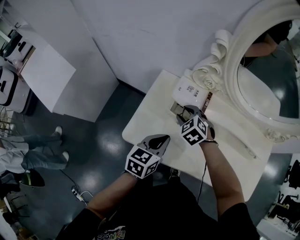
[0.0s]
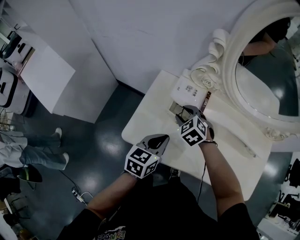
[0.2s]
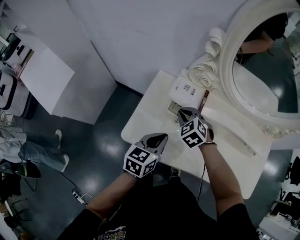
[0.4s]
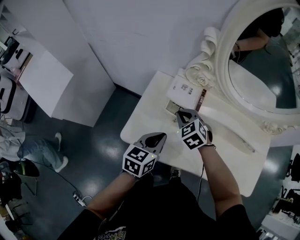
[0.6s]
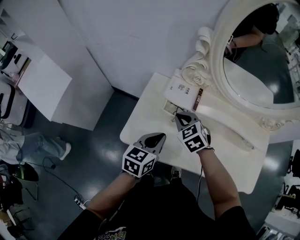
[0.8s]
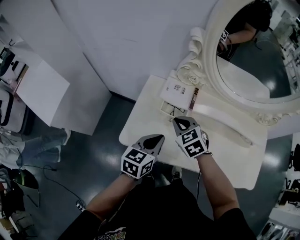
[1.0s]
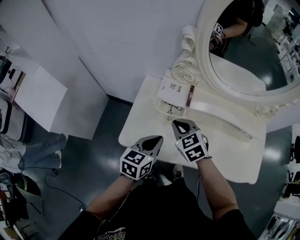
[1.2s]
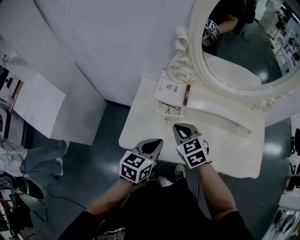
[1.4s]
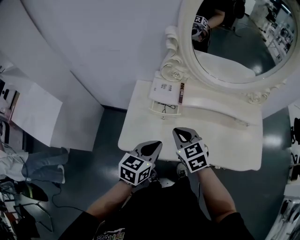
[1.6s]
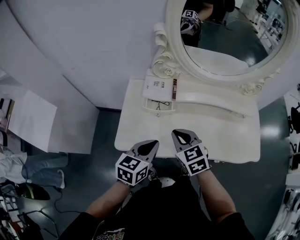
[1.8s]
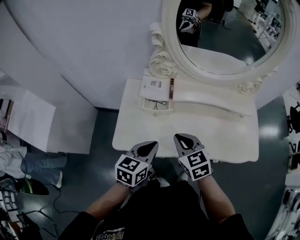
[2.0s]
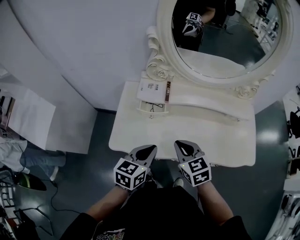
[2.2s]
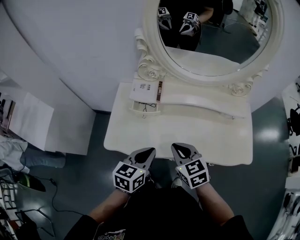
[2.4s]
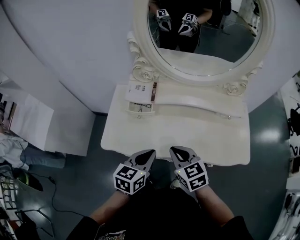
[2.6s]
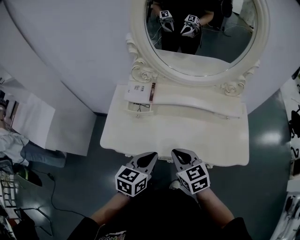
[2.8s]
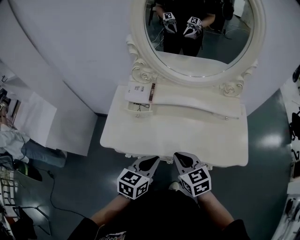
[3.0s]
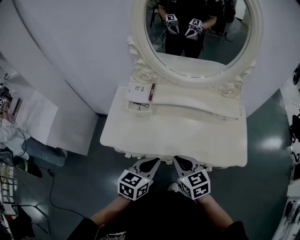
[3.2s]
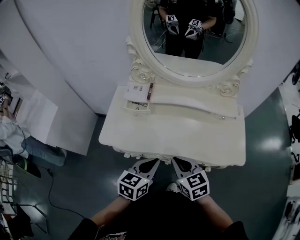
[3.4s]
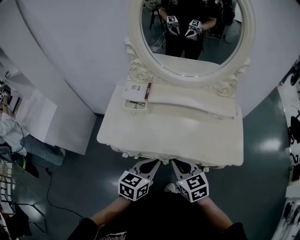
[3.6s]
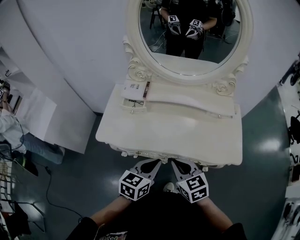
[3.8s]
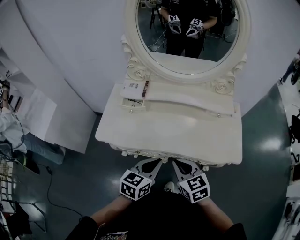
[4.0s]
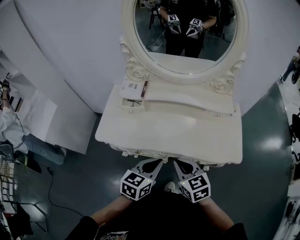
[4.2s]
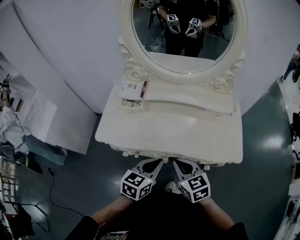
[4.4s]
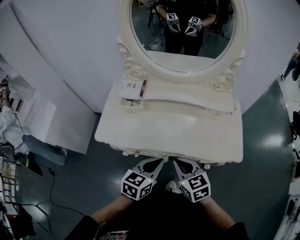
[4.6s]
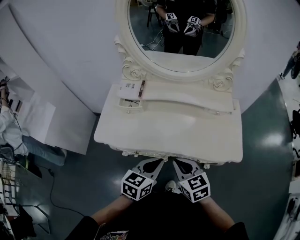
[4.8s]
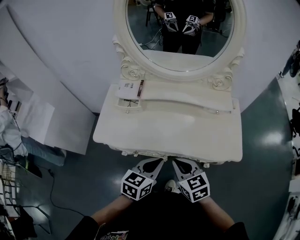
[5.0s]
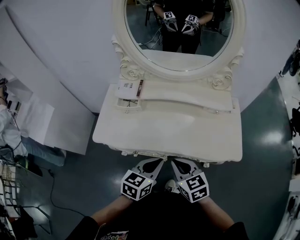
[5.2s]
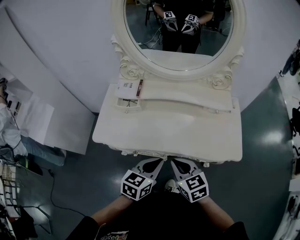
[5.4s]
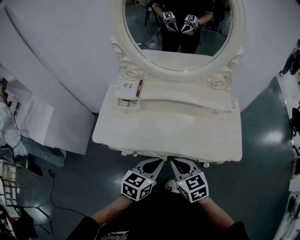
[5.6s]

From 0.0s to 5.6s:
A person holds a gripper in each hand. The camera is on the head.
From 0.0s to 1.4s: The left gripper ends up some 5 cm from where it was. Meanwhile the right gripper moves backward and upward, some 15 cm, swivels some 30 degrees, and closes its fingers.
From 1.4s to 2.8s: The two grippers go roughly 20 cm to the right and backward.
From 2.8s to 4.2s: The right gripper travels backward and to the right by about 10 cm. The left gripper is displaced to the right and backward by about 10 cm.
From 4.2s to 5.6s: The grippers move only a little.

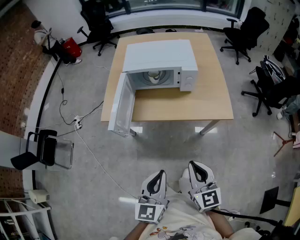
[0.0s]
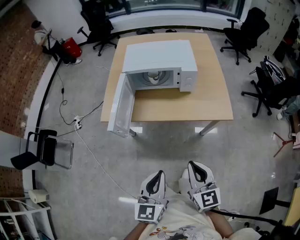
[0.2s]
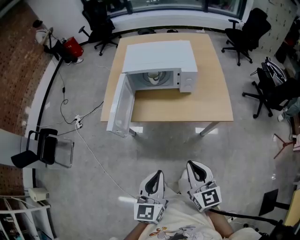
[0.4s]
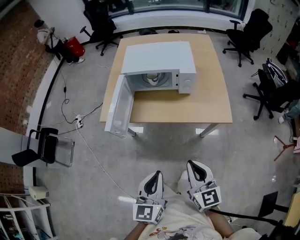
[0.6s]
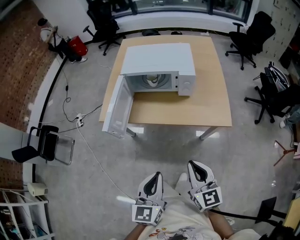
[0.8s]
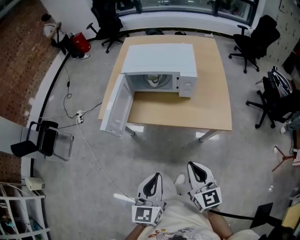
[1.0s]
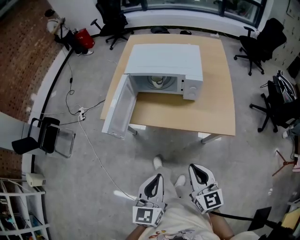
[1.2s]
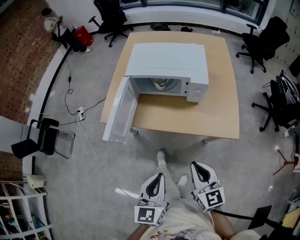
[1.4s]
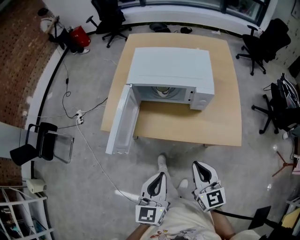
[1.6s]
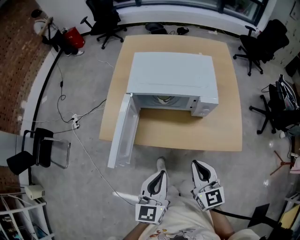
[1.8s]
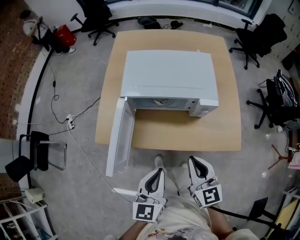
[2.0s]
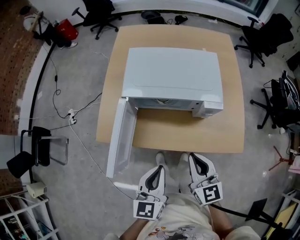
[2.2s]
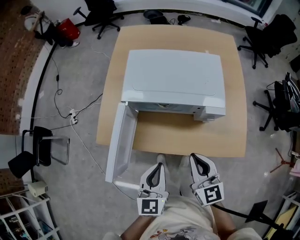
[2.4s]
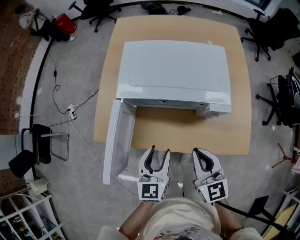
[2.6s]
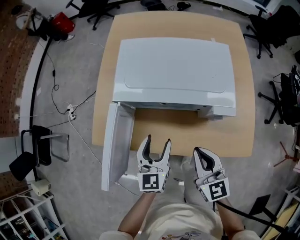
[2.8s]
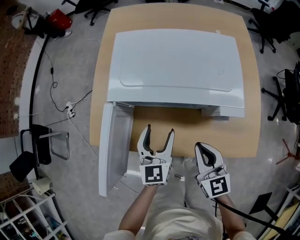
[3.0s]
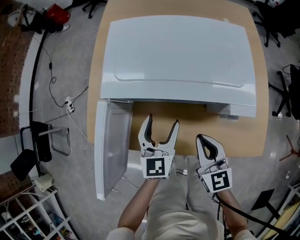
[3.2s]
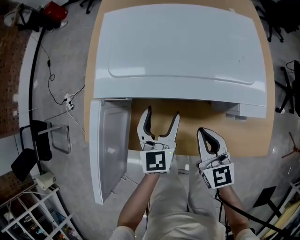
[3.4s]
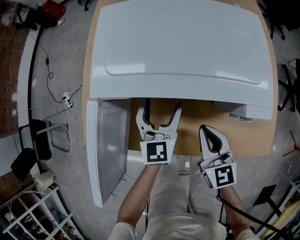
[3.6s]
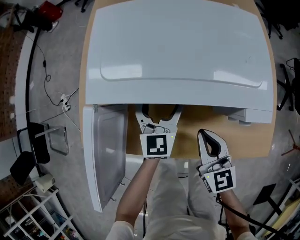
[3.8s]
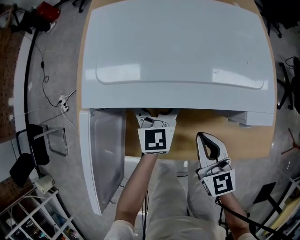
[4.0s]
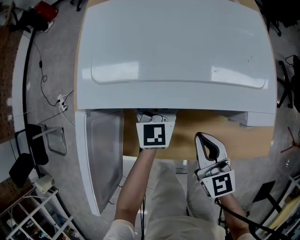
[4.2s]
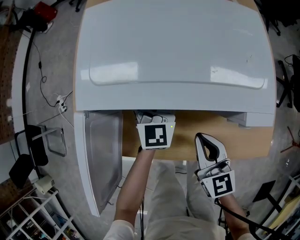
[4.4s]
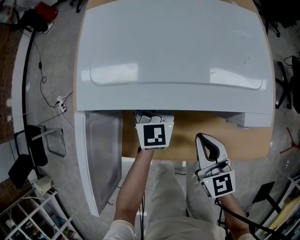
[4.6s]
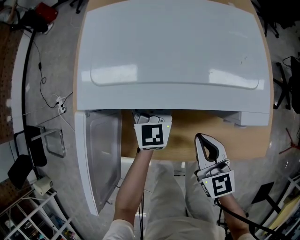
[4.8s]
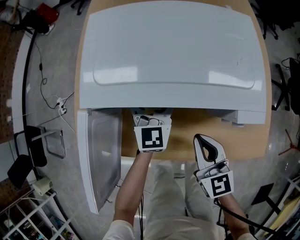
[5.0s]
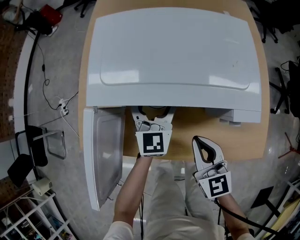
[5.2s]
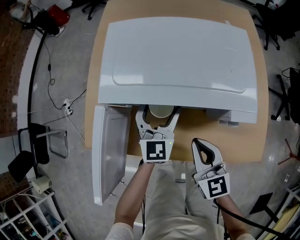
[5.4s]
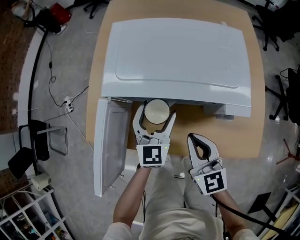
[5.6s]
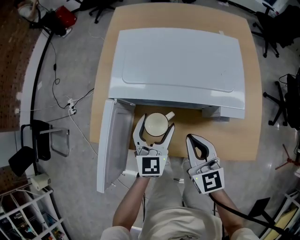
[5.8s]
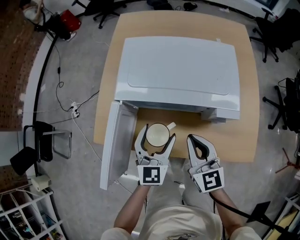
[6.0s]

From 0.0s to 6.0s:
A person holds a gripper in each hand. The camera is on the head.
From 0.0s to 1.6s: Both grippers travel together forward, approximately 15 cm.
From 1.6s to 3.0s: The two grippers go approximately 30 cm forward and downward. The left gripper opens up.
From 3.0s to 4.4s: The left gripper is displaced forward and downward by some 15 cm, and rotates approximately 20 degrees, while the right gripper is displaced downward by roughly 10 cm.
From 4.4s to 6.0s: The left gripper is displaced backward and upward by about 20 cm. Meanwhile the right gripper heads upward, covering roughly 10 cm.

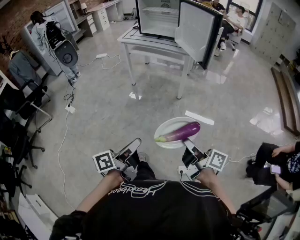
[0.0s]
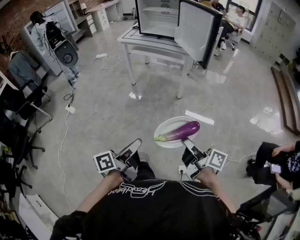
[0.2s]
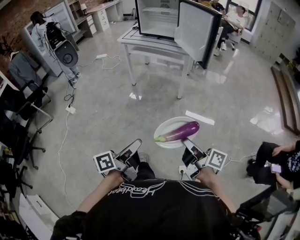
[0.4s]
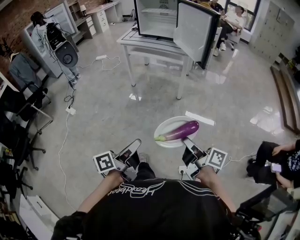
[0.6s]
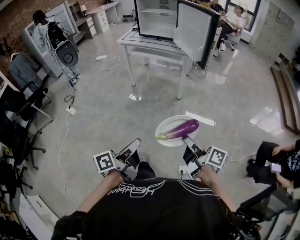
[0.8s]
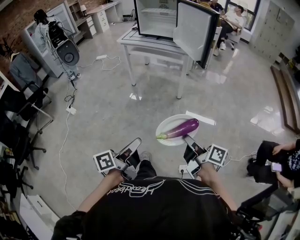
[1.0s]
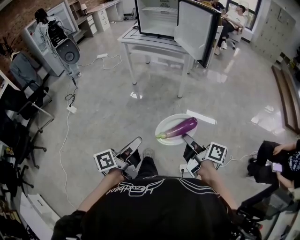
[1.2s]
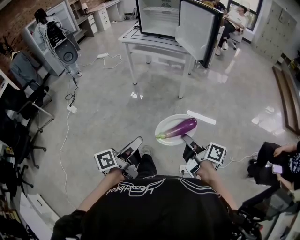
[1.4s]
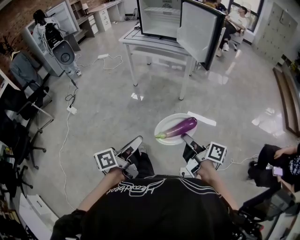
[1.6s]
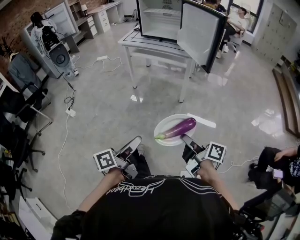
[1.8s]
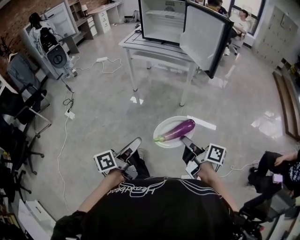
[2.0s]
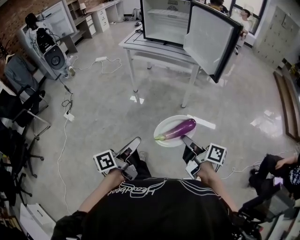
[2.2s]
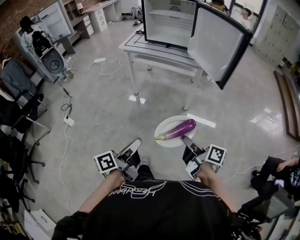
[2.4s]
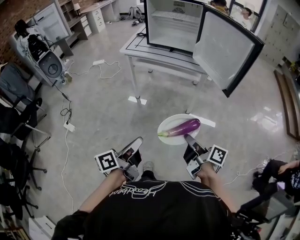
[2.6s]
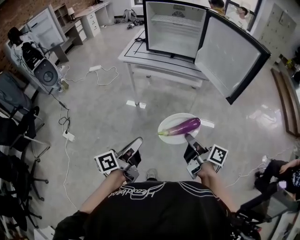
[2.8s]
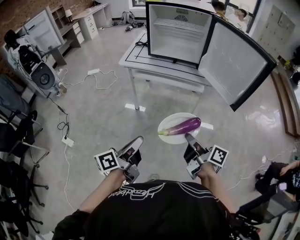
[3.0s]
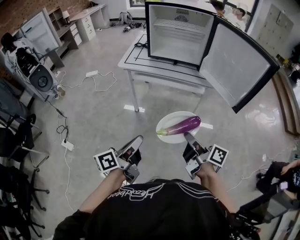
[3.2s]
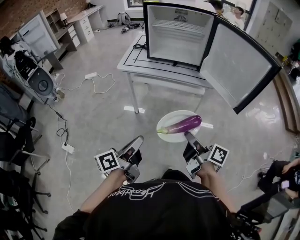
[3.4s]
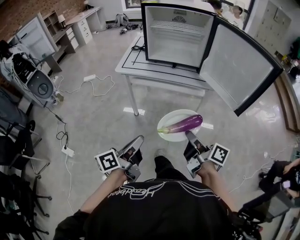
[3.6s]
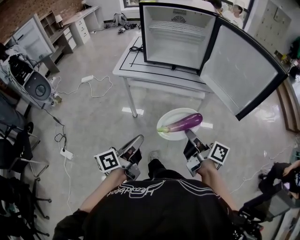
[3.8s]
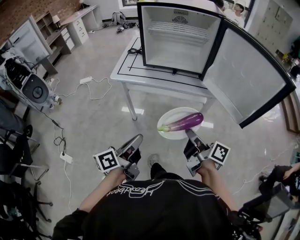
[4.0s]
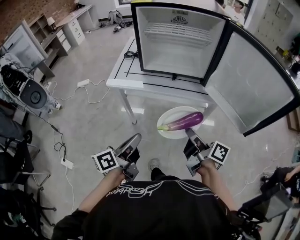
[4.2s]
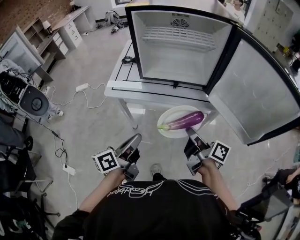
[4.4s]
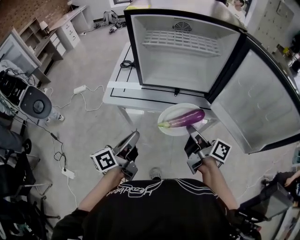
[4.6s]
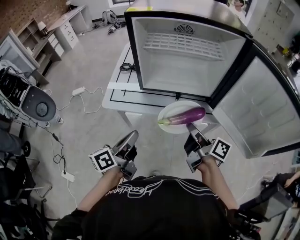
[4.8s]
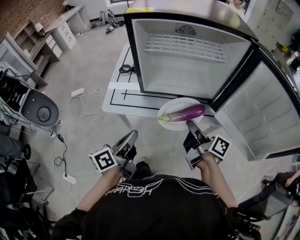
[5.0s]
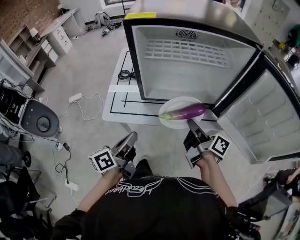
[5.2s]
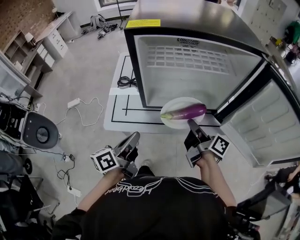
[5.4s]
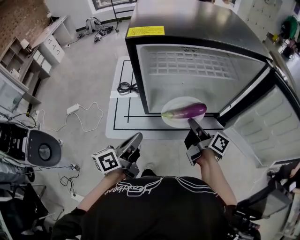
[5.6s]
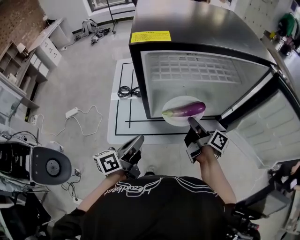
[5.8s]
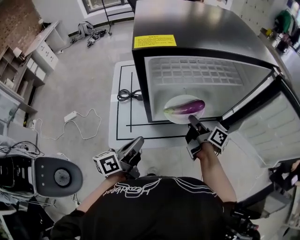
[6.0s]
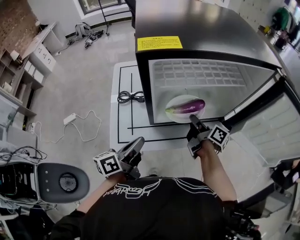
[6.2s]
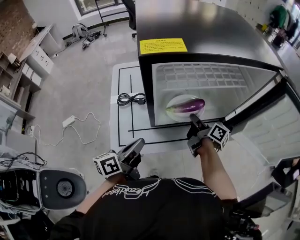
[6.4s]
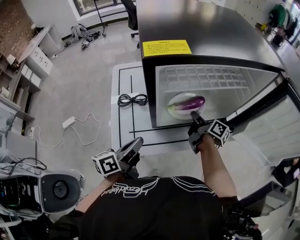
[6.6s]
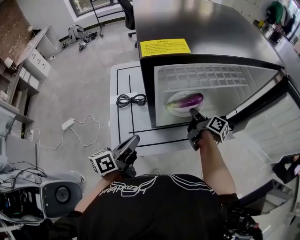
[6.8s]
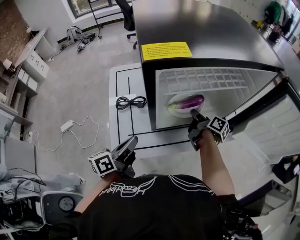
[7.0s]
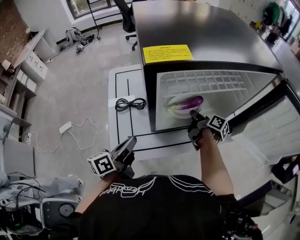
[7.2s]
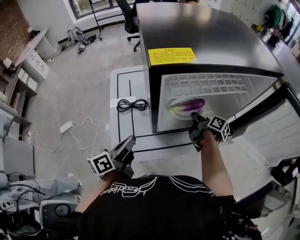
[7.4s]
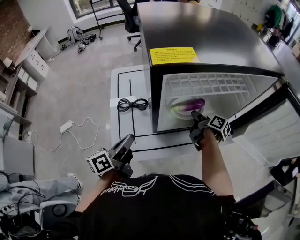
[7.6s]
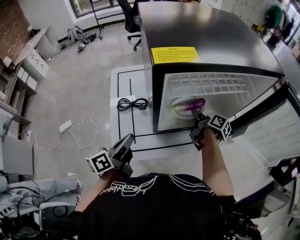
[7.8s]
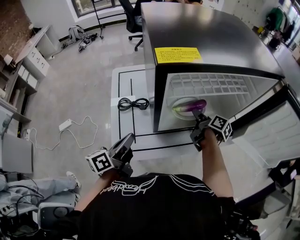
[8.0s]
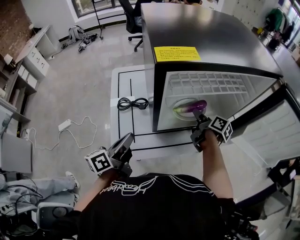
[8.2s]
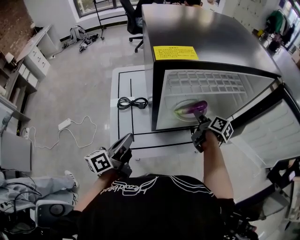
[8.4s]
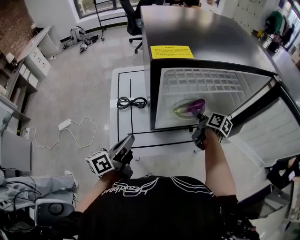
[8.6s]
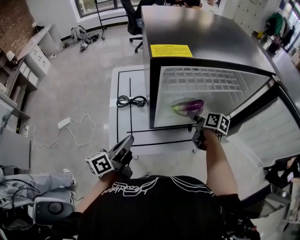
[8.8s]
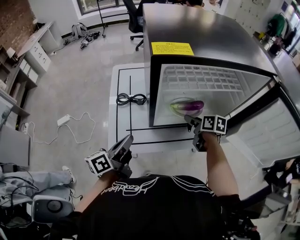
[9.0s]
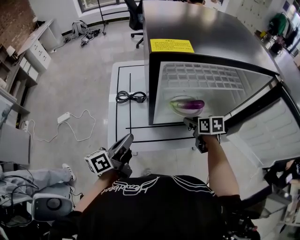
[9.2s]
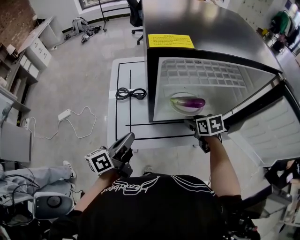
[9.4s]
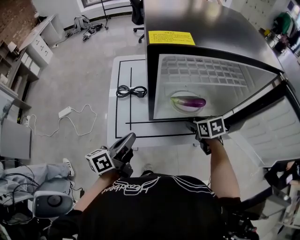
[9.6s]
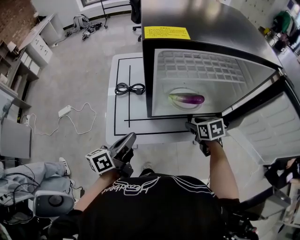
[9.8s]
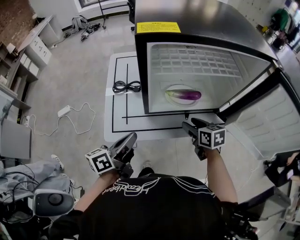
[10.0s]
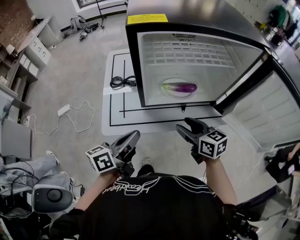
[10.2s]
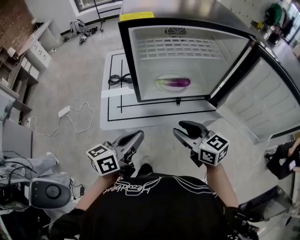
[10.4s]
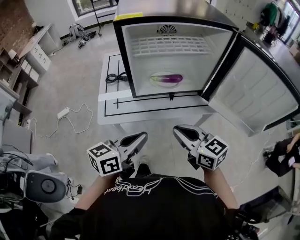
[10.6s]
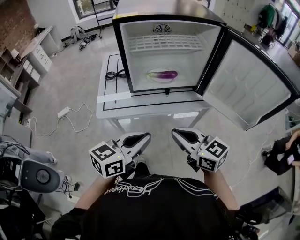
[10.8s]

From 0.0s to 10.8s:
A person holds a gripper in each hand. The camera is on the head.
From 0.0s to 1.6s: The grippers move only a little.
From 1.6s to 3.0s: Both grippers are carried forward and to the left, about 40 cm.
From 3.0s to 4.6s: Both grippers travel together forward, some 40 cm.
From 4.6s to 6.2s: The left gripper shifts roughly 25 cm forward and to the left, while the right gripper is displaced forward by approximately 25 cm, and changes its angle by some 20 degrees.
From 6.2s to 7.8s: The left gripper shifts about 10 cm to the left; the right gripper heads forward, covering roughly 5 cm, and opens its fingers.
From 7.8s to 9.2s: The right gripper goes roughly 5 cm backward, rolls counterclockwise, seen from behind, by approximately 50 degrees, and opens its fingers.
From 9.2s to 10.8s: The left gripper goes about 30 cm backward and to the right, and swivels roughly 40 degrees; the right gripper shifts roughly 35 cm backward and upward, points its fingers some 40 degrees further upward, and closes.

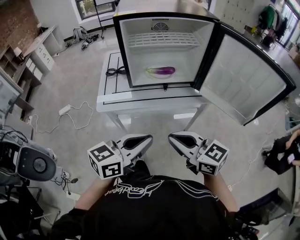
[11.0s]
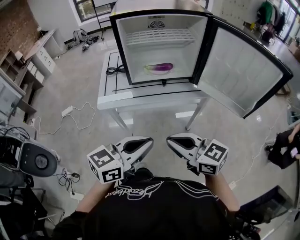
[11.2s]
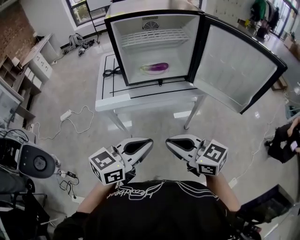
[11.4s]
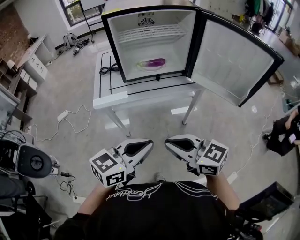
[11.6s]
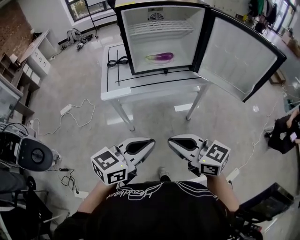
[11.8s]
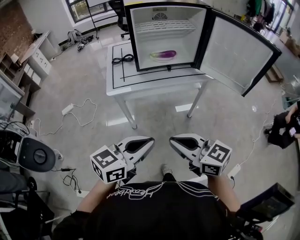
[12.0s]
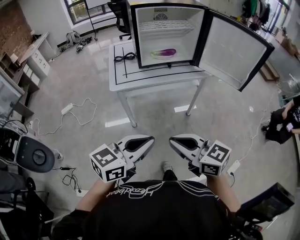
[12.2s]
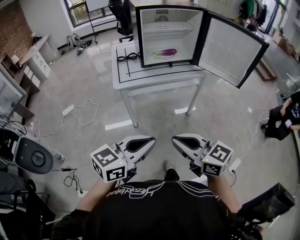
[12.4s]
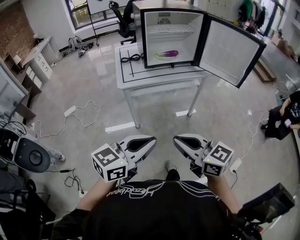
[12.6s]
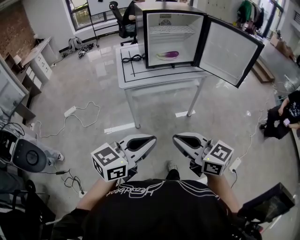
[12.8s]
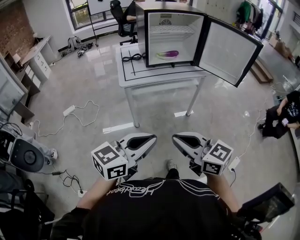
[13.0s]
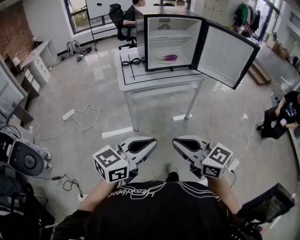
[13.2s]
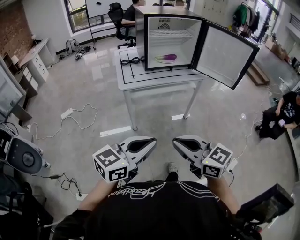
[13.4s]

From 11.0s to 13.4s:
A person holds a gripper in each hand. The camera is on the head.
From 11.0s to 12.2s: The two grippers go about 25 cm backward and to the left.
From 12.2s to 13.4s: The two grippers go some 15 cm backward and to the left.
